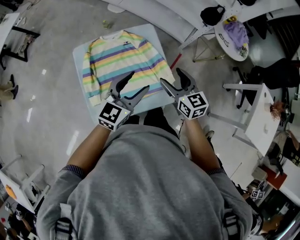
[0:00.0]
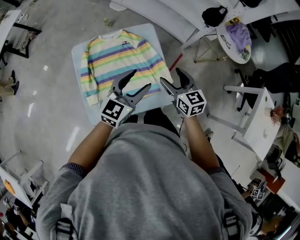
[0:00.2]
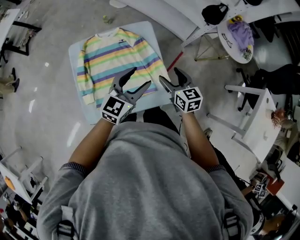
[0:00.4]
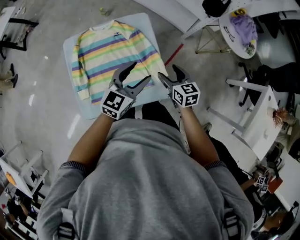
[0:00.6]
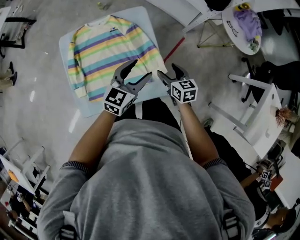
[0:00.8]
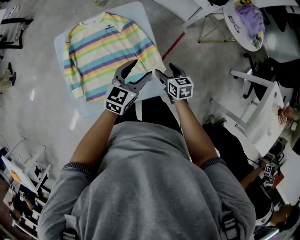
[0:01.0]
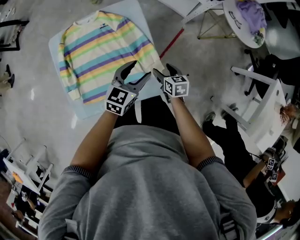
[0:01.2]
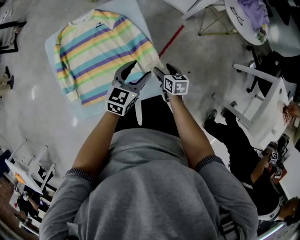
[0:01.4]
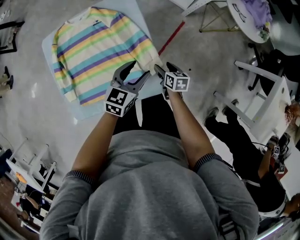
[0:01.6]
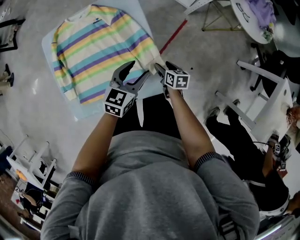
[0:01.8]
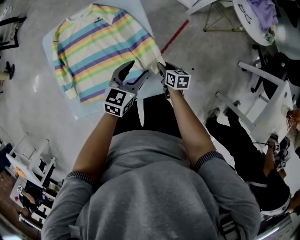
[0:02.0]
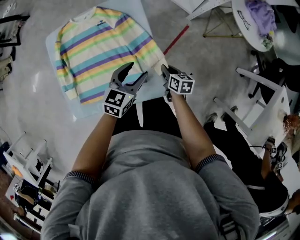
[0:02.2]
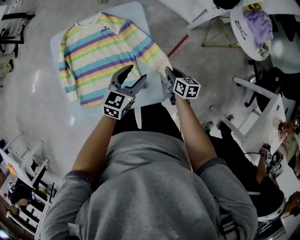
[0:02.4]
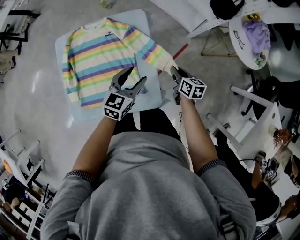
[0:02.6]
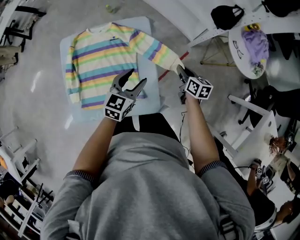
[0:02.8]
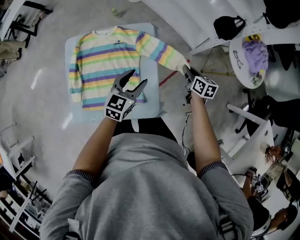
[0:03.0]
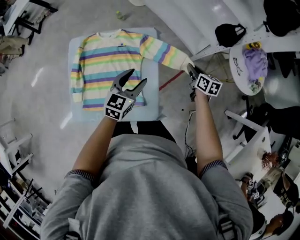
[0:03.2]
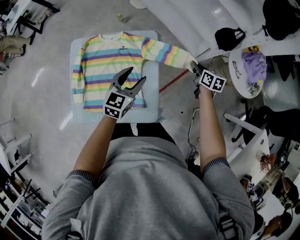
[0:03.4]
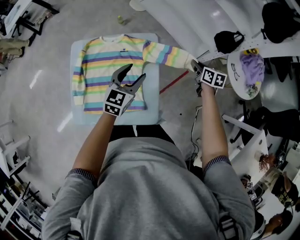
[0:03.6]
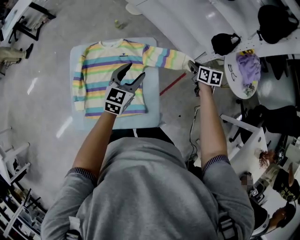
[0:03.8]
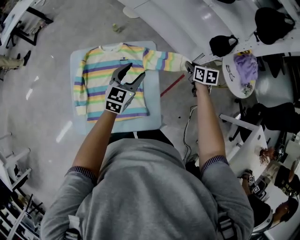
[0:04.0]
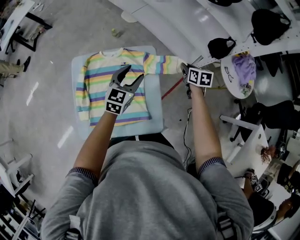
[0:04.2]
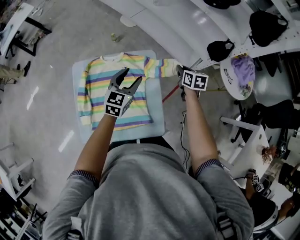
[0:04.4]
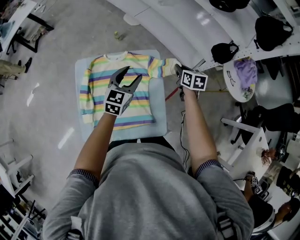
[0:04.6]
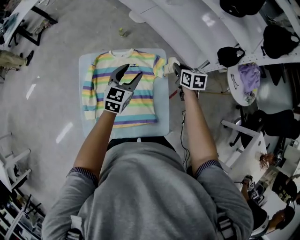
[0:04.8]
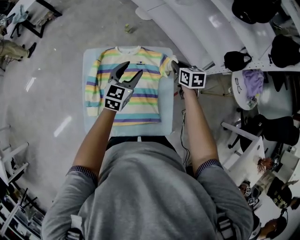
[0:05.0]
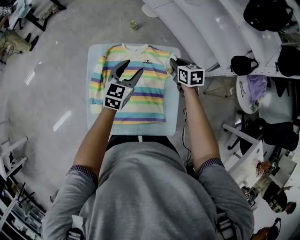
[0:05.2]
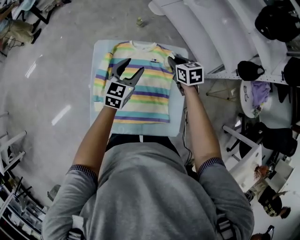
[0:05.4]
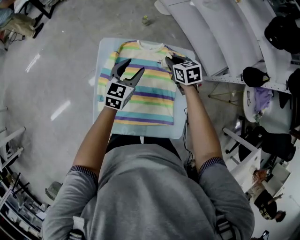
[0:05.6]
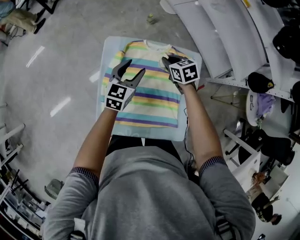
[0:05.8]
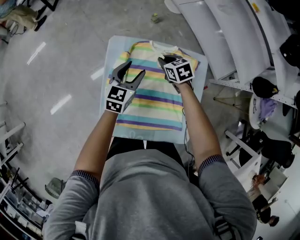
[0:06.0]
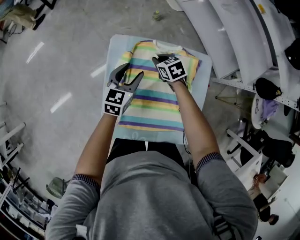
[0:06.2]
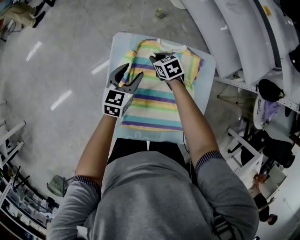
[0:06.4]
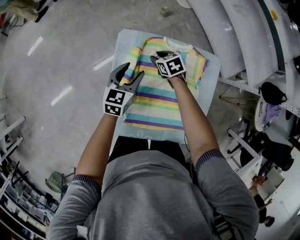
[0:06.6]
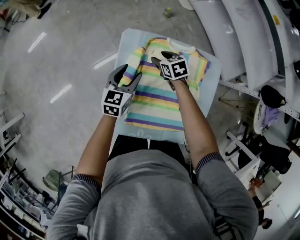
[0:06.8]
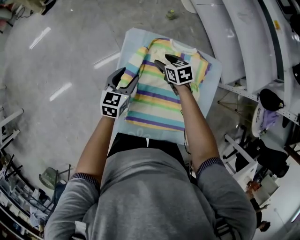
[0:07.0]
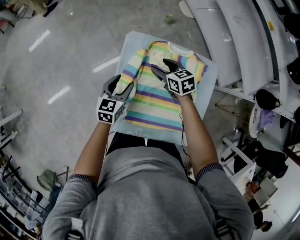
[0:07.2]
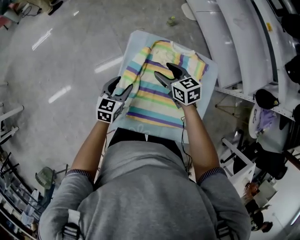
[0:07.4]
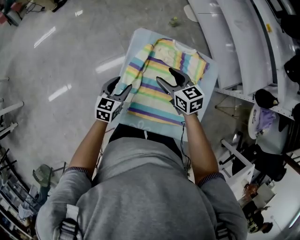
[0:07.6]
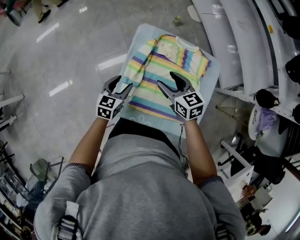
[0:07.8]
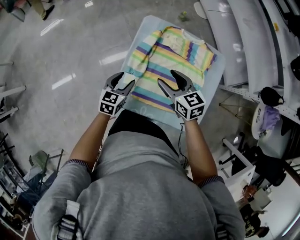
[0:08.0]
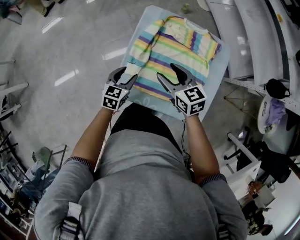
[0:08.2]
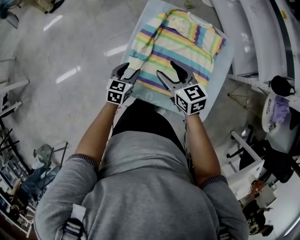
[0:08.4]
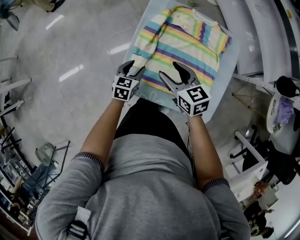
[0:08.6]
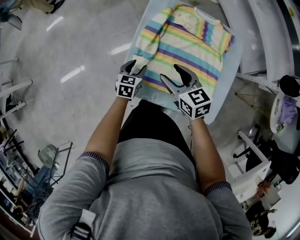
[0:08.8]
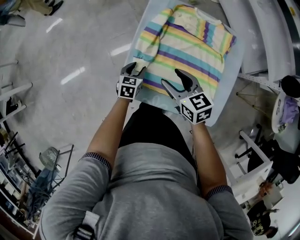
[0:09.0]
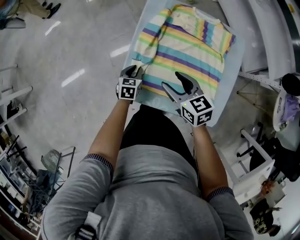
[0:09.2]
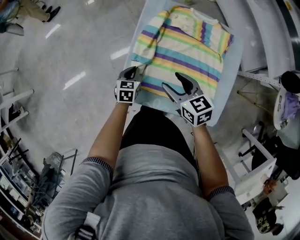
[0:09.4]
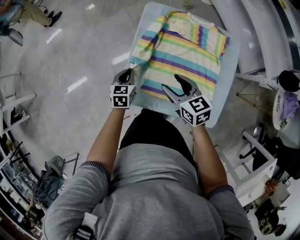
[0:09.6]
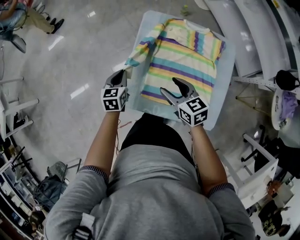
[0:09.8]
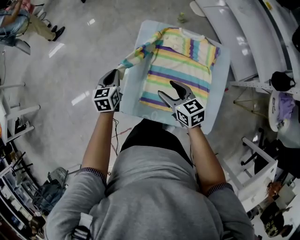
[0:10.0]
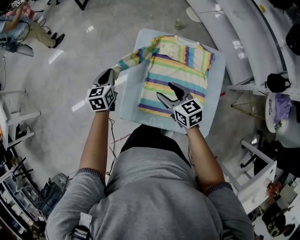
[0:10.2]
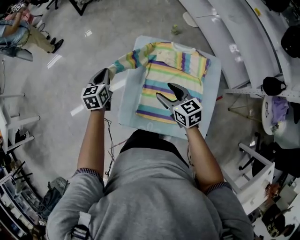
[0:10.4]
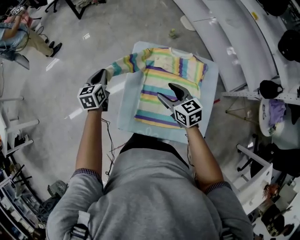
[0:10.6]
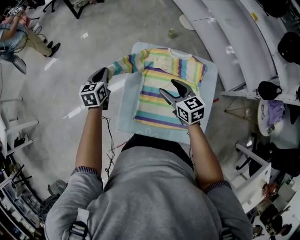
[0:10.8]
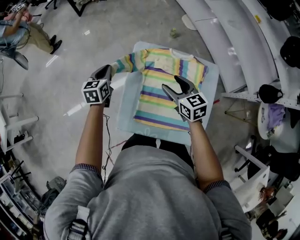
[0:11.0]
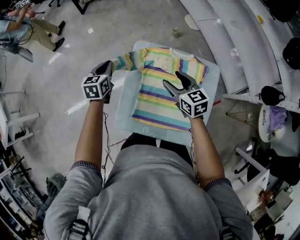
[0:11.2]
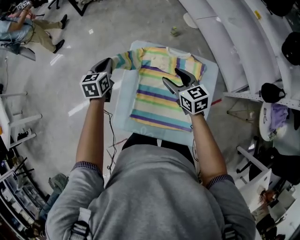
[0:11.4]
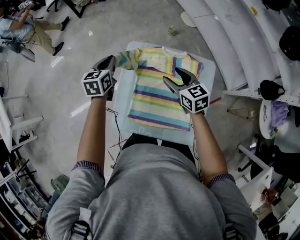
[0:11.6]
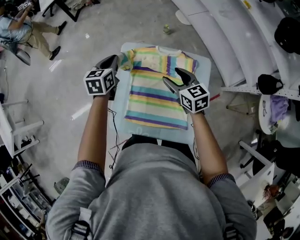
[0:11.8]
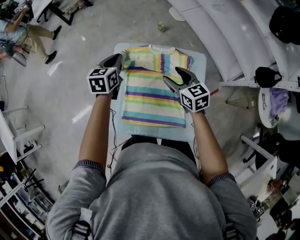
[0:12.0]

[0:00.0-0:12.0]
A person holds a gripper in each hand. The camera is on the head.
0:00.0 to 0:01.6: The right gripper is displaced downward by approximately 35 cm, and turns by about 40 degrees, while the left gripper is displaced downward and to the right by roughly 25 cm, and changes its angle by some 20 degrees.
0:01.6 to 0:03.0: The right gripper is displaced forward, upward and to the right by approximately 25 cm, and closes its fingers. The left gripper goes about 10 cm upward and forward.
0:03.0 to 0:04.4: The left gripper moves forward, to the left and upward, about 15 cm. Meanwhile the right gripper shifts some 15 cm forward, upward and to the left.
0:04.4 to 0:06.0: The right gripper shifts by roughly 40 cm, and changes its angle by approximately 40 degrees. Meanwhile the left gripper changes place by roughly 30 cm.
0:06.0 to 0:07.6: The right gripper moves to the left, upward and backward, roughly 20 cm, and opens up, while the left gripper shifts about 20 cm to the left and backward.
0:07.6 to 0:09.0: The right gripper shifts approximately 15 cm backward and to the left. Meanwhile the left gripper travels downward and backward by approximately 20 cm.
0:09.0 to 0:10.4: The right gripper shifts roughly 10 cm upward, forward and to the right. The left gripper heads upward and forward, covering about 30 cm, and closes.
0:10.4 to 0:12.0: Both grippers travel together to the right, about 20 cm.

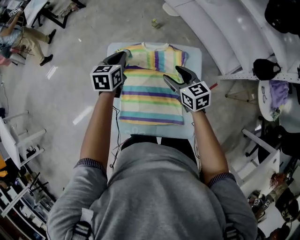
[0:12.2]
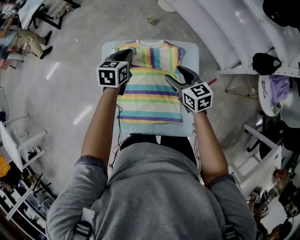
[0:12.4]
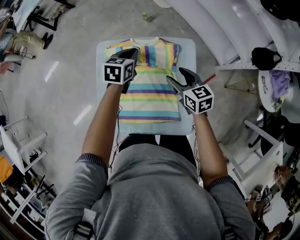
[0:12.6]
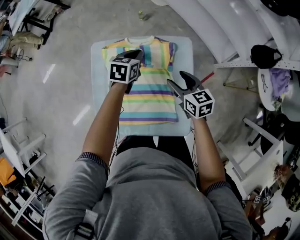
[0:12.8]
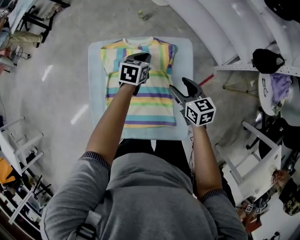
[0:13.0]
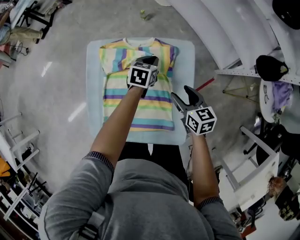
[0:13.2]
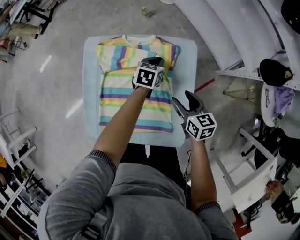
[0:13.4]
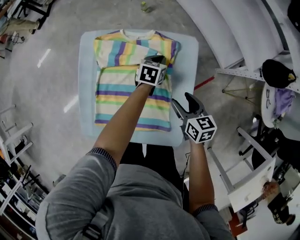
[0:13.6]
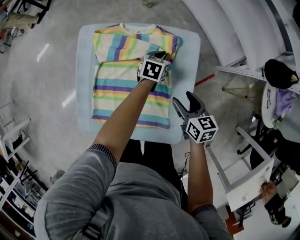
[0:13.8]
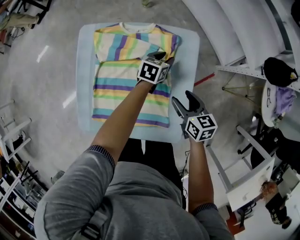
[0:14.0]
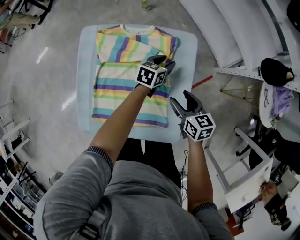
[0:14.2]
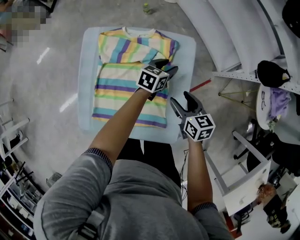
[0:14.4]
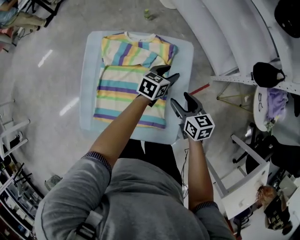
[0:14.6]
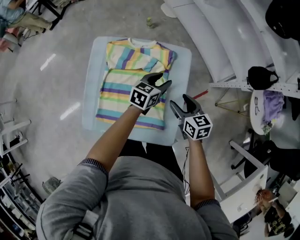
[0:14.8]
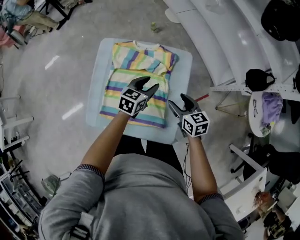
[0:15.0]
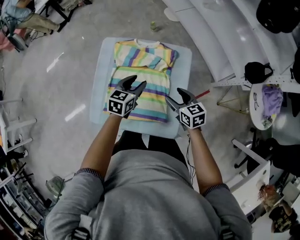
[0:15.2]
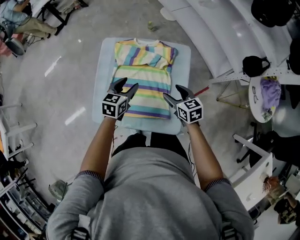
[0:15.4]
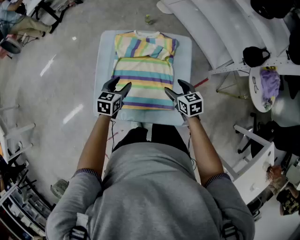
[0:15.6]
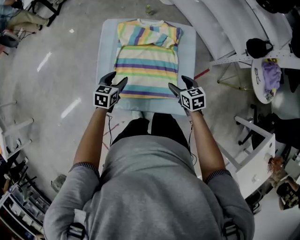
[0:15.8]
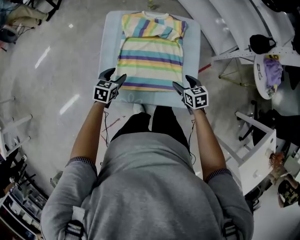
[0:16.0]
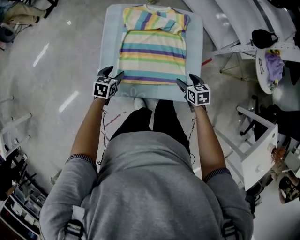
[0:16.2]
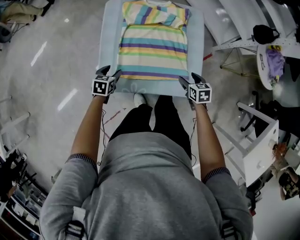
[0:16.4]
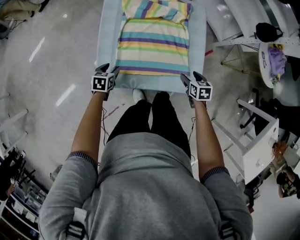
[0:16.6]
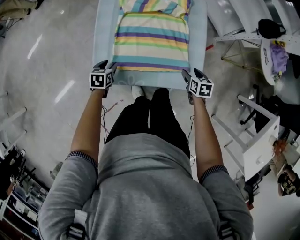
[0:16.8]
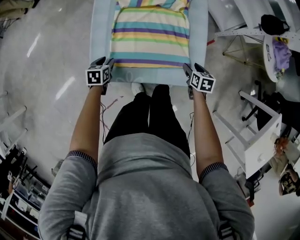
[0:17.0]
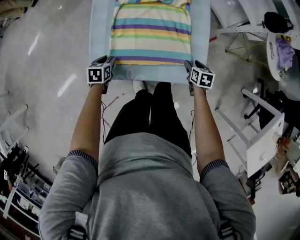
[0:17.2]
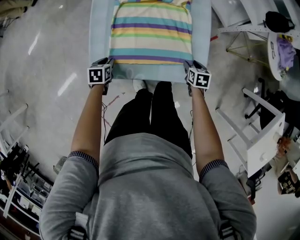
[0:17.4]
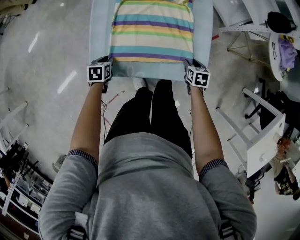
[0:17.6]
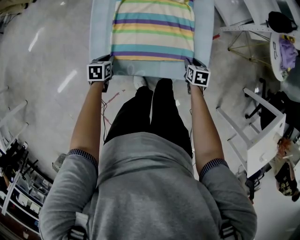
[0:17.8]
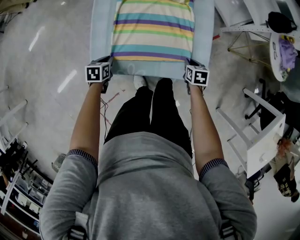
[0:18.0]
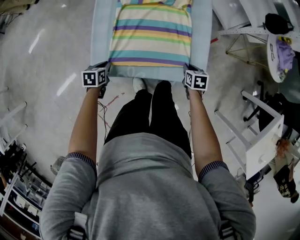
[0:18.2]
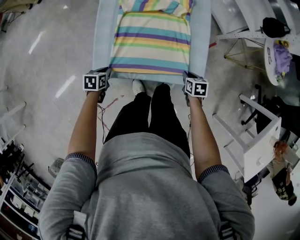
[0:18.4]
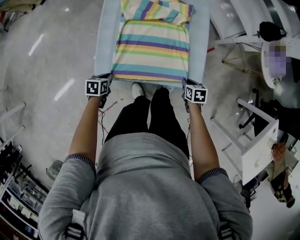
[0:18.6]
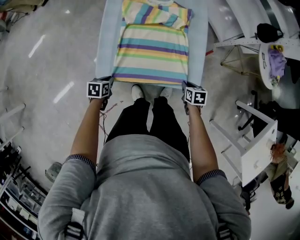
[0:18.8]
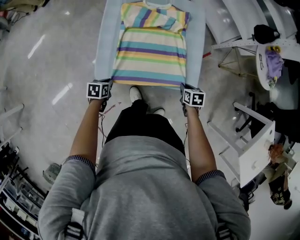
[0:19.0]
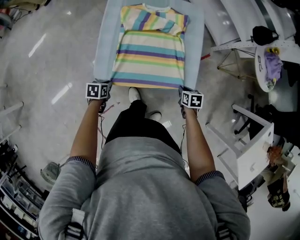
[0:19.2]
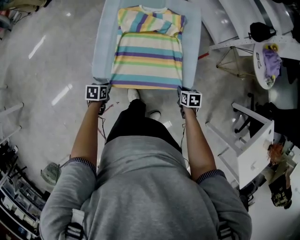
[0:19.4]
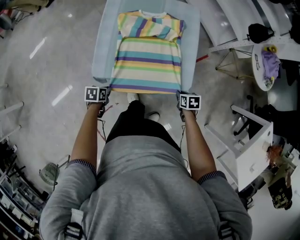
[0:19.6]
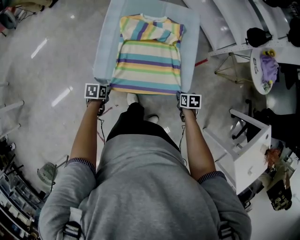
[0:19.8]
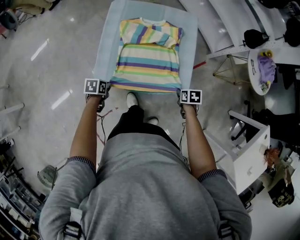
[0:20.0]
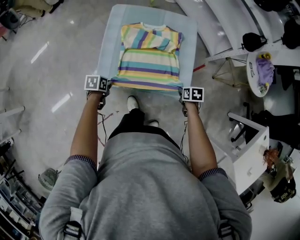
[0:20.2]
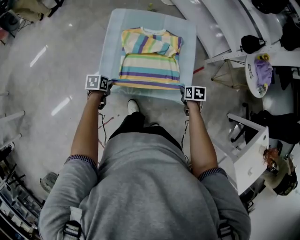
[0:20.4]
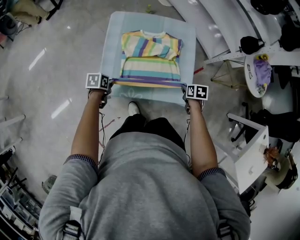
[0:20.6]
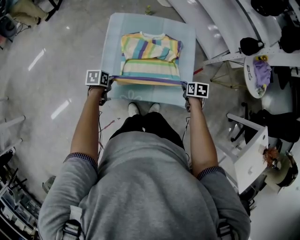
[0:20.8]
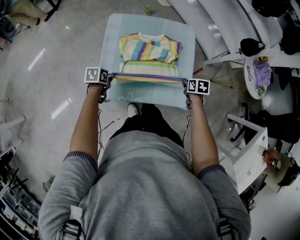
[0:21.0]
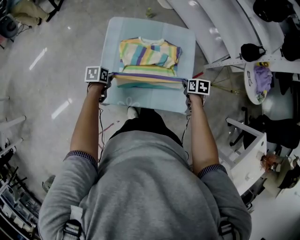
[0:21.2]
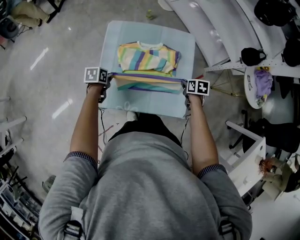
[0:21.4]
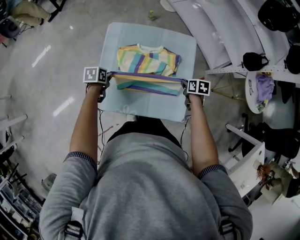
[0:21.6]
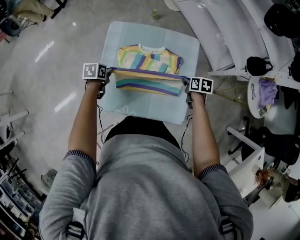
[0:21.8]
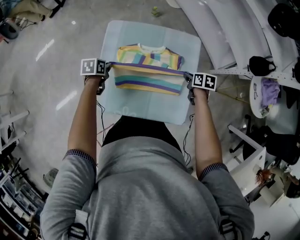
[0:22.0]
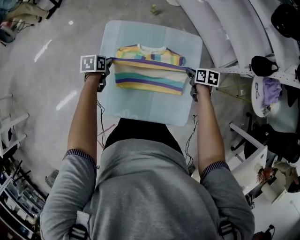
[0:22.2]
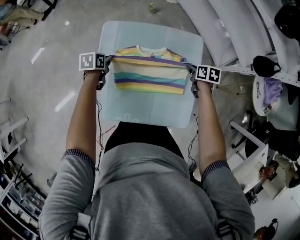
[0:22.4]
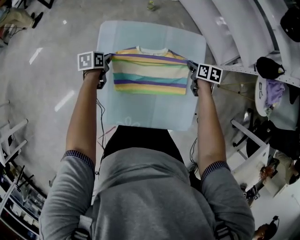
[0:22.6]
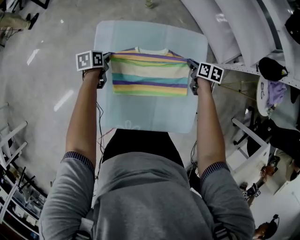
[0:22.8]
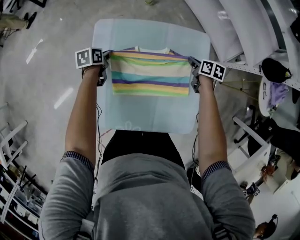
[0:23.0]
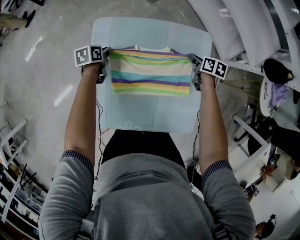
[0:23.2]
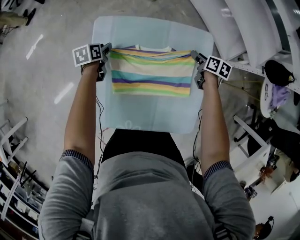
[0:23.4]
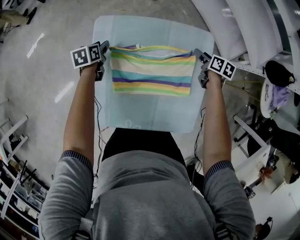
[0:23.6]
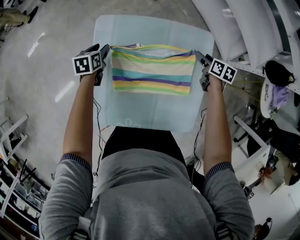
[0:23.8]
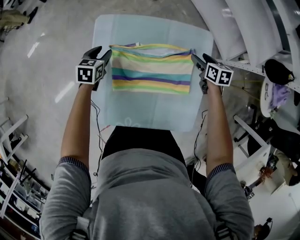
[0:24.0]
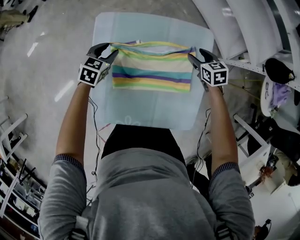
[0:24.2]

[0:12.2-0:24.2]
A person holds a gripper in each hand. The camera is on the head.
0:12.2 to 0:13.8: The right gripper goes approximately 20 cm downward, to the right and backward. The left gripper shifts some 35 cm downward and to the right.
0:13.8 to 0:15.2: The right gripper travels upward by about 10 cm. Meanwhile the left gripper is displaced upward, backward and to the left by about 30 cm, and opens up.
0:15.2 to 0:16.6: The left gripper heads to the left, downward and backward, covering approximately 35 cm, and swivels approximately 20 degrees. Meanwhile the right gripper moves backward and downward, roughly 20 cm, and changes its angle by approximately 30 degrees.
0:16.6 to 0:18.2: The right gripper heads downward, covering some 5 cm, and closes. Meanwhile the left gripper is displaced backward by about 5 cm, and closes its fingers.
0:18.2 to 0:19.8: Both grippers travel together backward, some 10 cm.
0:19.8 to 0:21.2: The two grippers go roughly 20 cm forward.
0:21.2 to 0:22.6: Both grippers move forward, some 20 cm.
0:22.6 to 0:24.2: The right gripper swivels some 30 degrees, and opens up. The left gripper shifts by some 5 cm, twists roughly 40 degrees clockwise, seen from behind, and opens.
